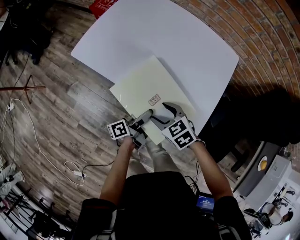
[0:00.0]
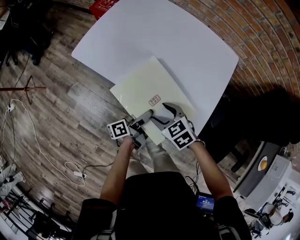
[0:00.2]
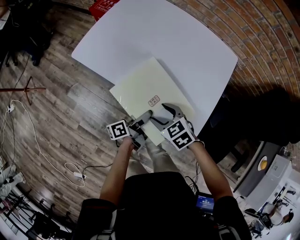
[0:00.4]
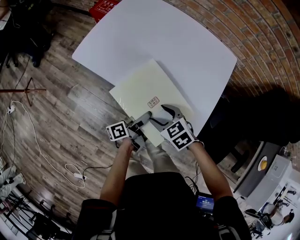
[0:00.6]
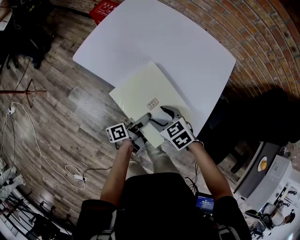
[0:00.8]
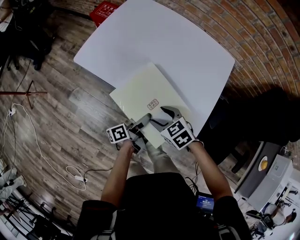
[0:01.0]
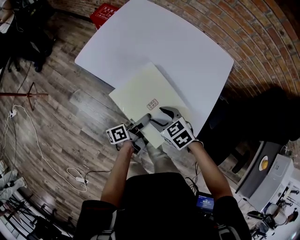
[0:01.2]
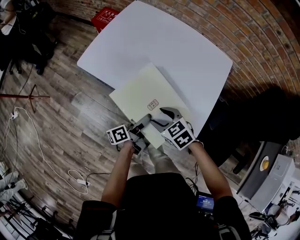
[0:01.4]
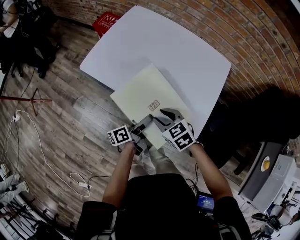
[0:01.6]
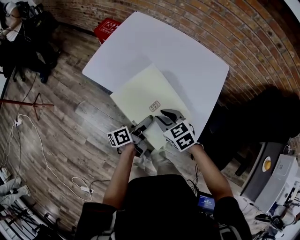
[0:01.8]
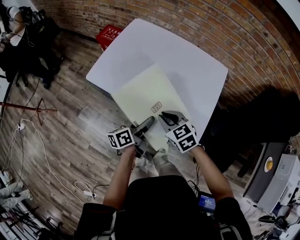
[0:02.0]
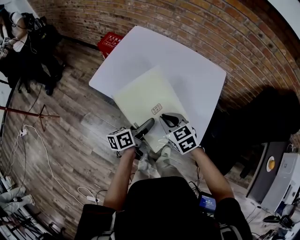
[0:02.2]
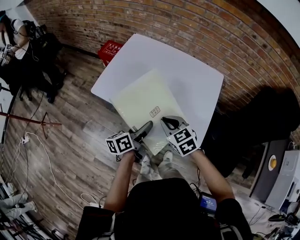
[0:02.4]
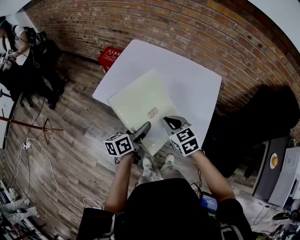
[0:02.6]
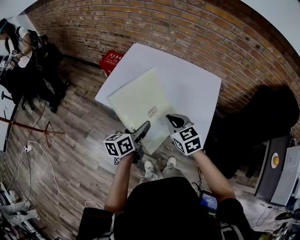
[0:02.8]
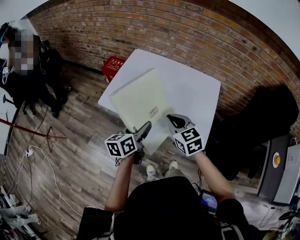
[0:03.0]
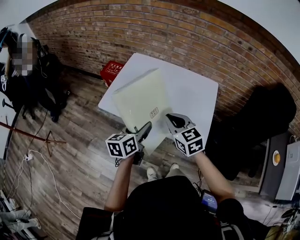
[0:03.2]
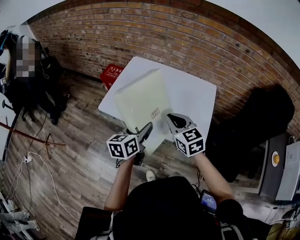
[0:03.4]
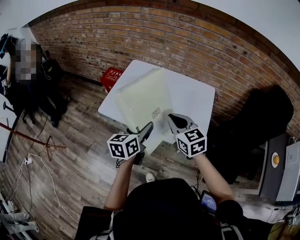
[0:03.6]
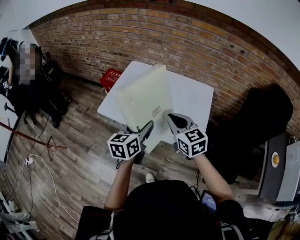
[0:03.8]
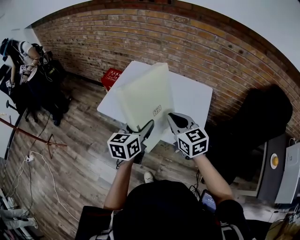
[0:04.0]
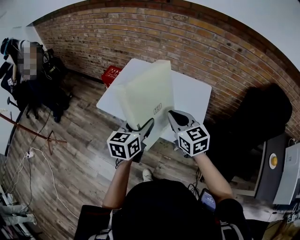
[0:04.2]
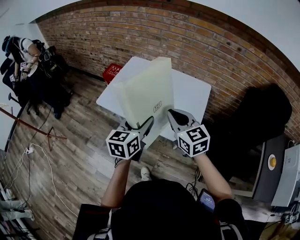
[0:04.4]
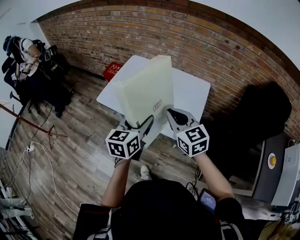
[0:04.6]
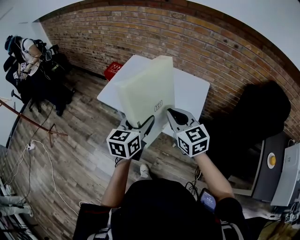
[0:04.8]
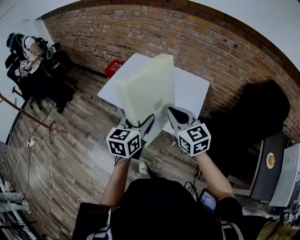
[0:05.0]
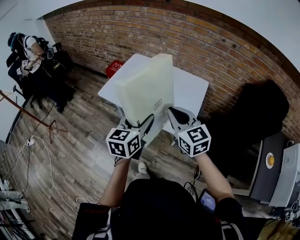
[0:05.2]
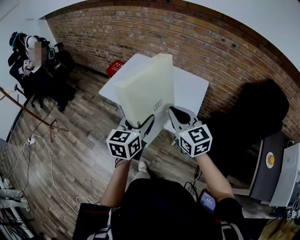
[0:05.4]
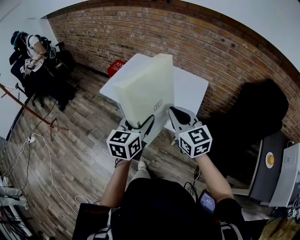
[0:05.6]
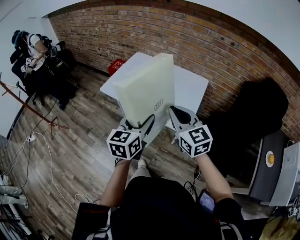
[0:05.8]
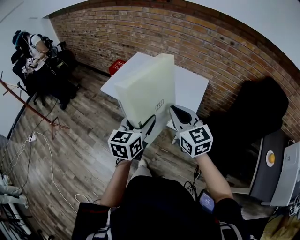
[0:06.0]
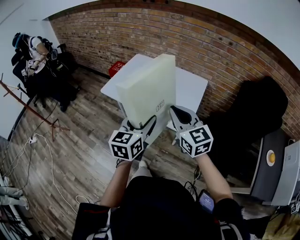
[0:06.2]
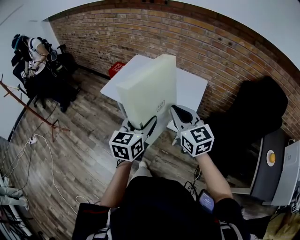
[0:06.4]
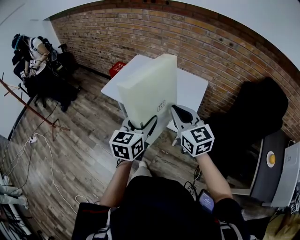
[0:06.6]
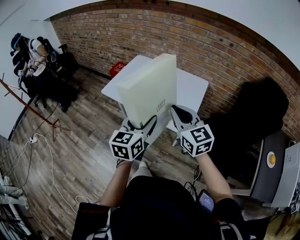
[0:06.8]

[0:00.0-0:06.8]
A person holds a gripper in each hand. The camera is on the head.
0:00.0 to 0:01.4: The grippers move only a little.
0:01.4 to 0:02.8: The right gripper travels upward by some 15 cm, rotates about 30 degrees, and closes its fingers, while the left gripper travels upward and to the left by roughly 20 cm, and turns by roughly 40 degrees.
0:02.8 to 0:04.0: Both grippers travel together upward, about 10 cm. The left gripper changes its angle by approximately 20 degrees.
0:04.0 to 0:05.4: The left gripper is displaced backward by approximately 15 cm. The right gripper moves backward and upward, some 15 cm.
0:05.4 to 0:06.8: The grippers move only a little.

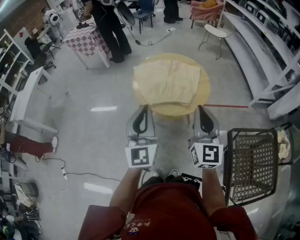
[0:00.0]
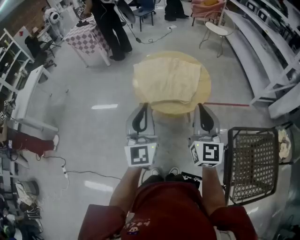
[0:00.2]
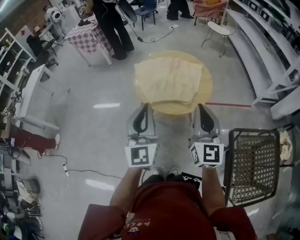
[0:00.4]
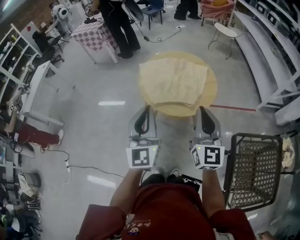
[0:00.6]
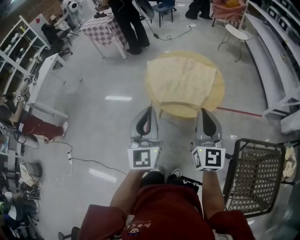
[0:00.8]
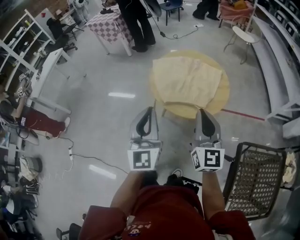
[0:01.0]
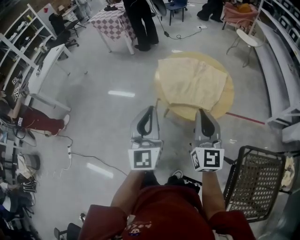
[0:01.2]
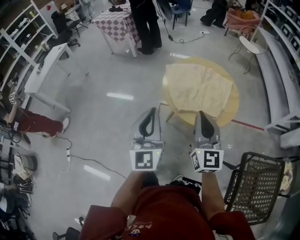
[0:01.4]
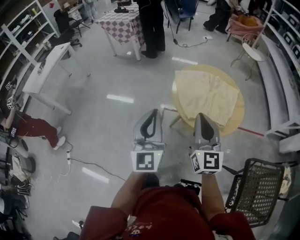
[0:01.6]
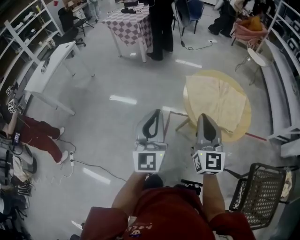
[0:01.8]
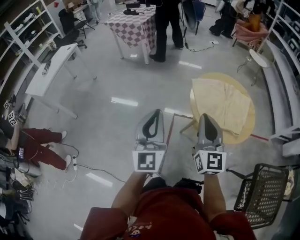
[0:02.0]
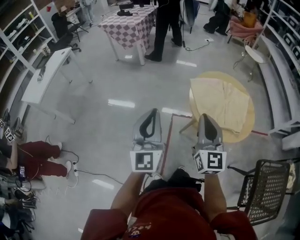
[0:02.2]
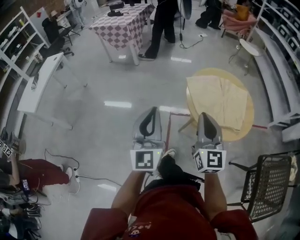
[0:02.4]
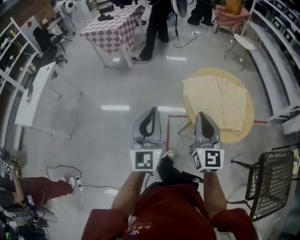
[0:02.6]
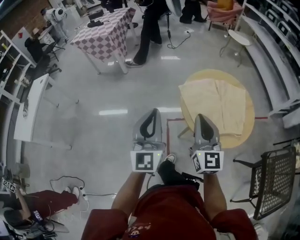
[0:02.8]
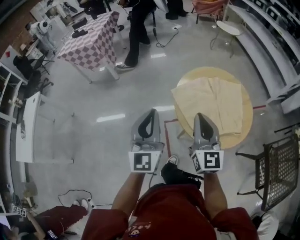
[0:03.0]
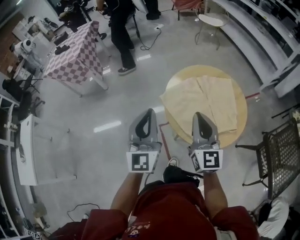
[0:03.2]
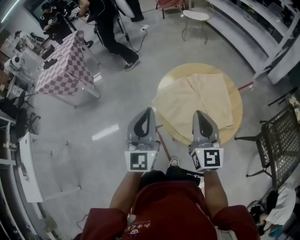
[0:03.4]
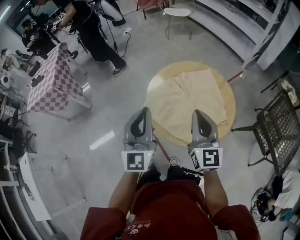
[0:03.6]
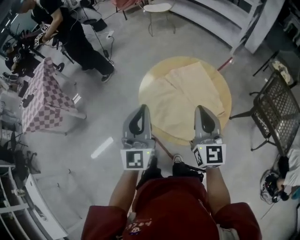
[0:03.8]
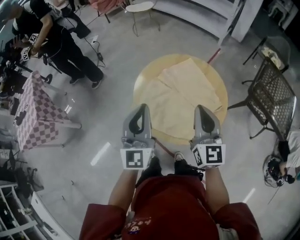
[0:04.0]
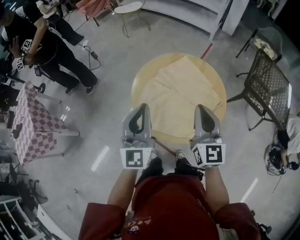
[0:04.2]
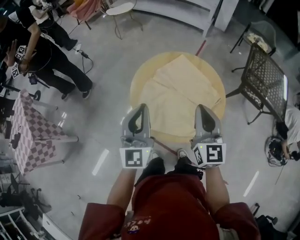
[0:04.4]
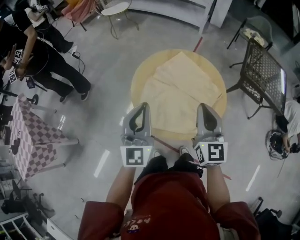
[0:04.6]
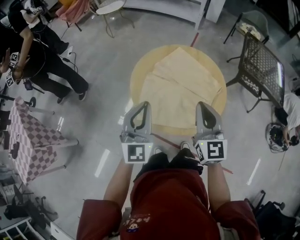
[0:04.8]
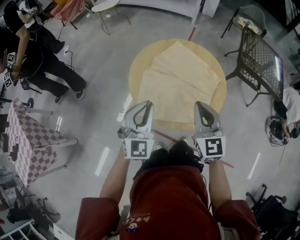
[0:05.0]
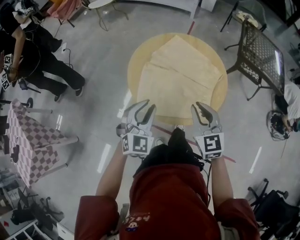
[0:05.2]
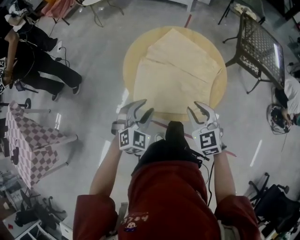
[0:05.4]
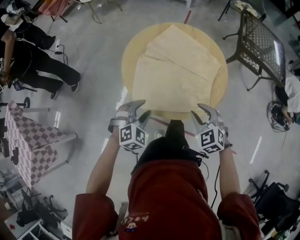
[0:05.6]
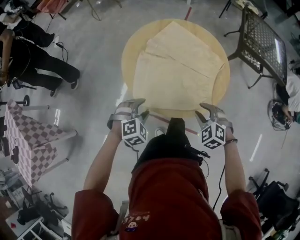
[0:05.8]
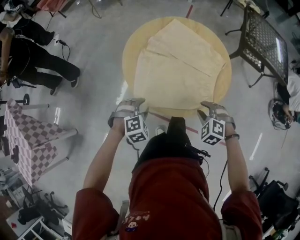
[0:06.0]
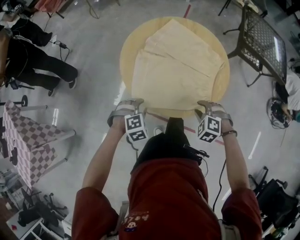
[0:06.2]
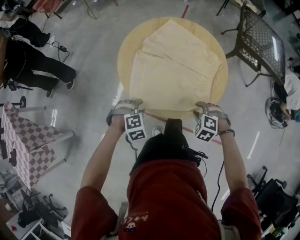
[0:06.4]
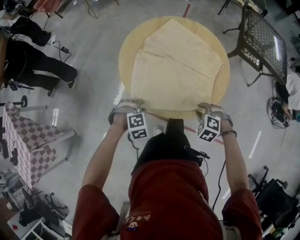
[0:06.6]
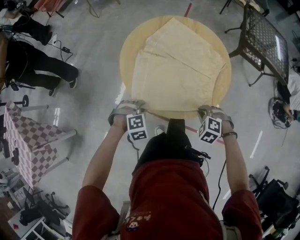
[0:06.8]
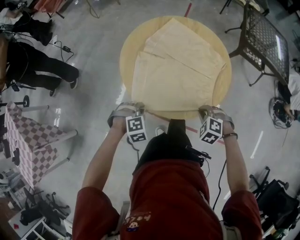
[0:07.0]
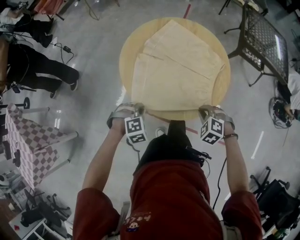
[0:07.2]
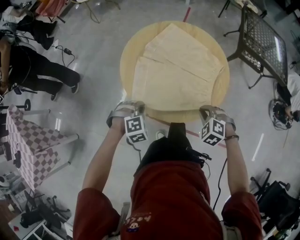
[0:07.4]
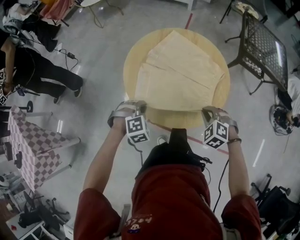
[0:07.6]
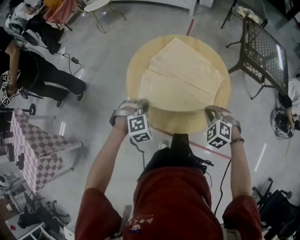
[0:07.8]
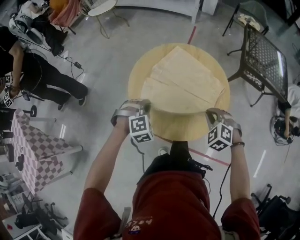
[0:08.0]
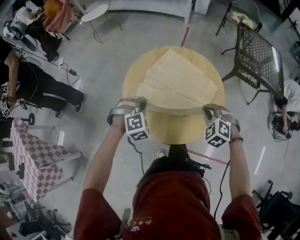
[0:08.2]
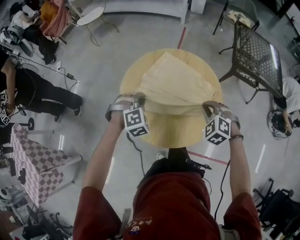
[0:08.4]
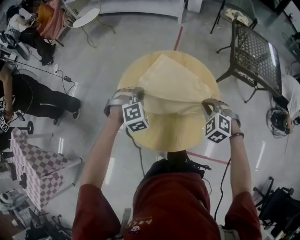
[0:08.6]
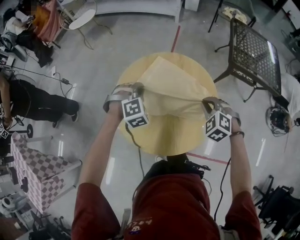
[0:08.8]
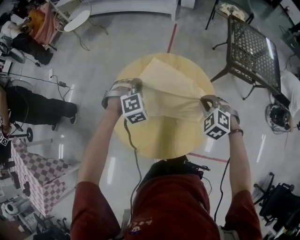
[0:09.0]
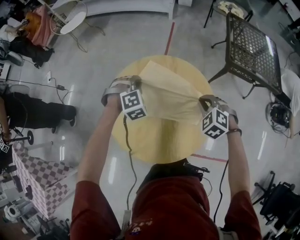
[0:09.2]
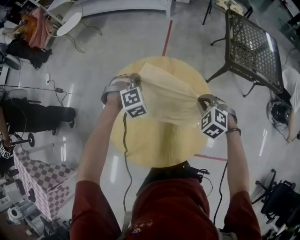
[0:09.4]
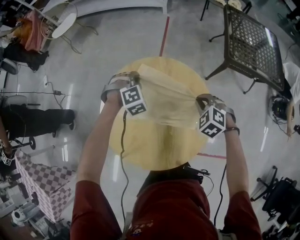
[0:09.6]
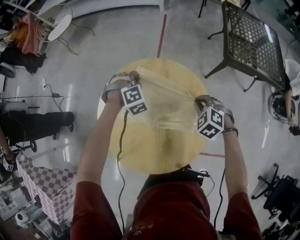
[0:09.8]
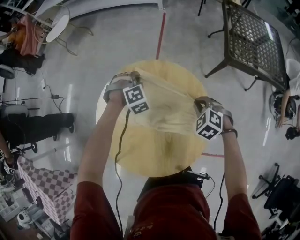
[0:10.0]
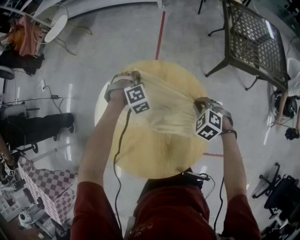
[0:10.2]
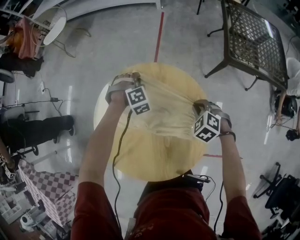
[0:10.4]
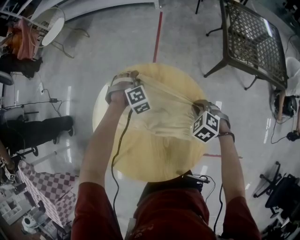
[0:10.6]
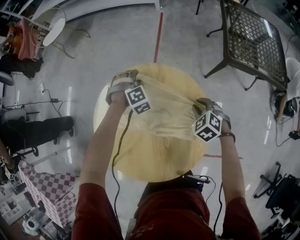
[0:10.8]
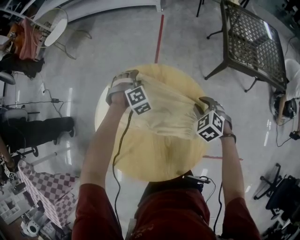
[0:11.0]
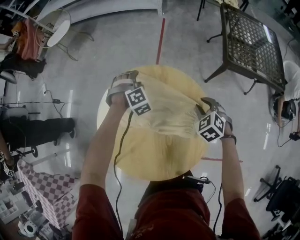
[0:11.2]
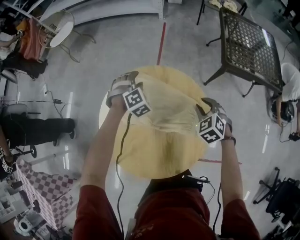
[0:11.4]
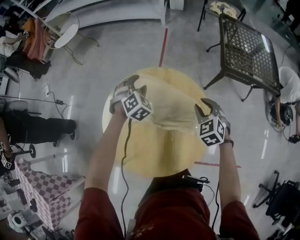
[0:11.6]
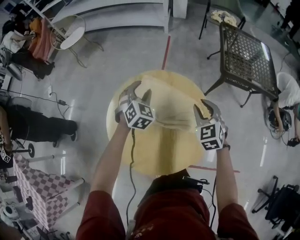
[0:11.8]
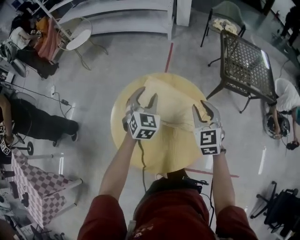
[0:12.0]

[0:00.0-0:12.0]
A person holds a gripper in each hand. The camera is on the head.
0:00.0 to 0:01.6: The left gripper shifts roughly 20 cm to the left, while the right gripper travels to the left and forward by roughly 20 cm.
0:01.6 to 0:03.0: Both grippers move forward, about 25 cm. The left gripper swivels some 20 degrees.
0:03.0 to 0:04.4: The right gripper moves roughly 15 cm, and turns by some 50 degrees. The left gripper ends up about 25 cm from where it was, and rotates approximately 50 degrees.
0:04.4 to 0:06.0: The two grippers go roughly 30 cm downward. The right gripper points its fingers roughly 60 degrees further downward, and opens up; the left gripper tilts its fingers about 70 degrees downward, and opens up.
0:06.0 to 0:07.6: The right gripper moves some 5 cm, and closes its fingers; the left gripper heads forward, covering approximately 5 cm, and closes up.
0:07.6 to 0:09.0: The left gripper shifts roughly 25 cm forward; the right gripper is displaced forward and to the right by some 20 cm.
0:09.0 to 0:10.4: The left gripper moves forward, downward and to the right, roughly 20 cm, while the right gripper travels downward, forward and to the right by about 15 cm.
0:10.4 to 0:12.0: The right gripper travels upward by some 20 cm, tips its fingers upward by some 40 degrees, and opens. The left gripper goes roughly 25 cm upward and backward, rotates around the line of its fingers by some 50 degrees, counterclockwise from behind, and opens up.

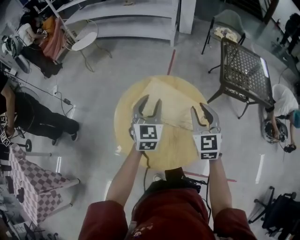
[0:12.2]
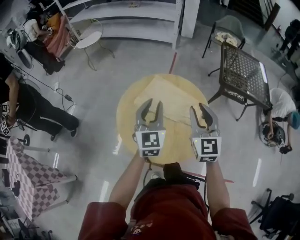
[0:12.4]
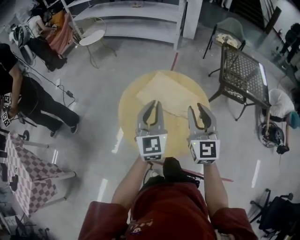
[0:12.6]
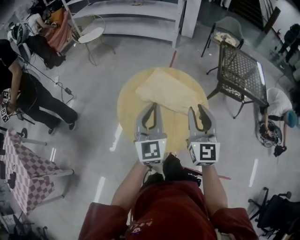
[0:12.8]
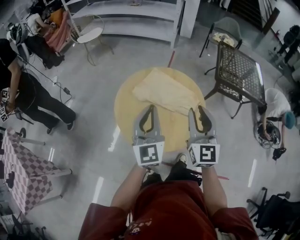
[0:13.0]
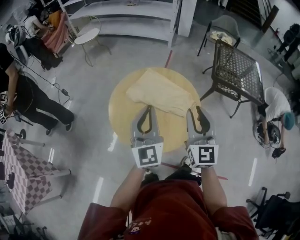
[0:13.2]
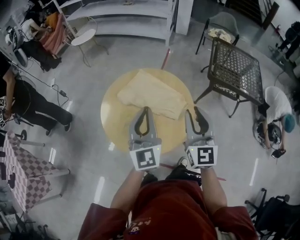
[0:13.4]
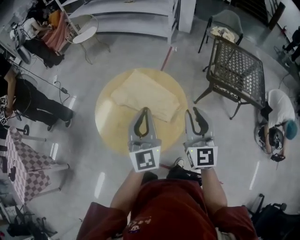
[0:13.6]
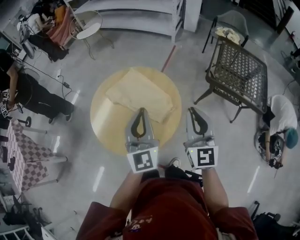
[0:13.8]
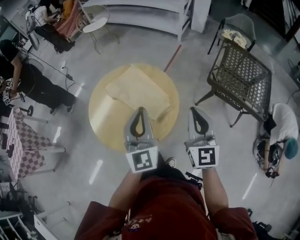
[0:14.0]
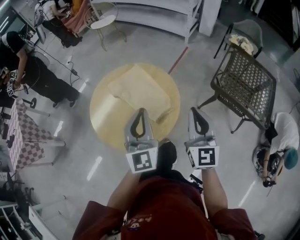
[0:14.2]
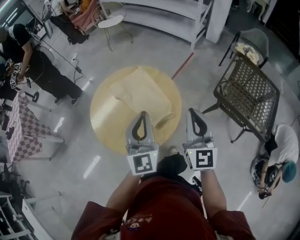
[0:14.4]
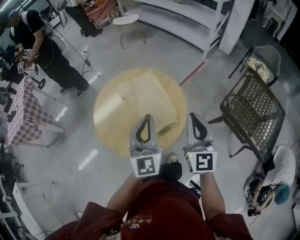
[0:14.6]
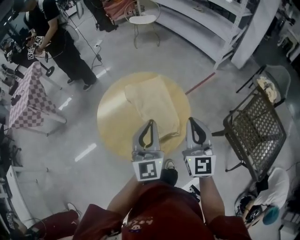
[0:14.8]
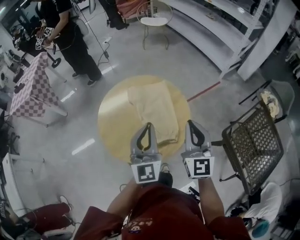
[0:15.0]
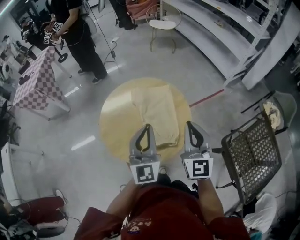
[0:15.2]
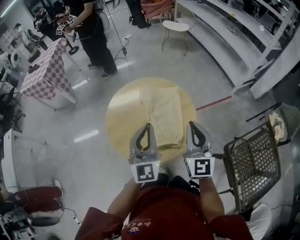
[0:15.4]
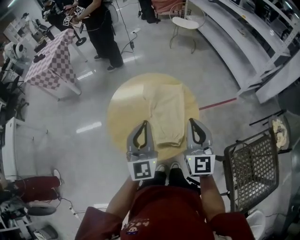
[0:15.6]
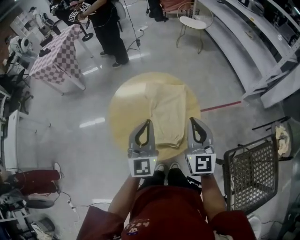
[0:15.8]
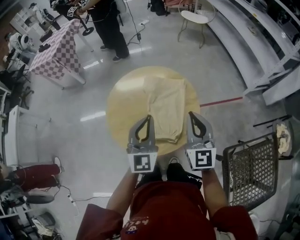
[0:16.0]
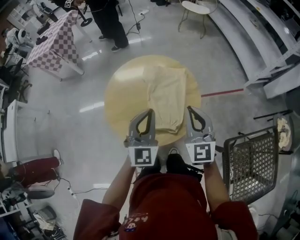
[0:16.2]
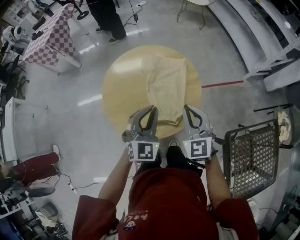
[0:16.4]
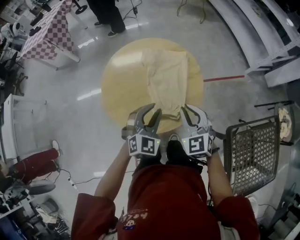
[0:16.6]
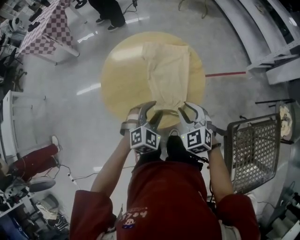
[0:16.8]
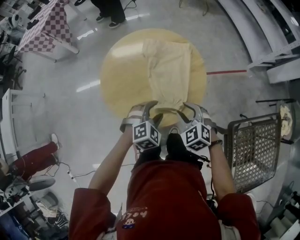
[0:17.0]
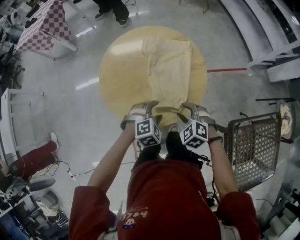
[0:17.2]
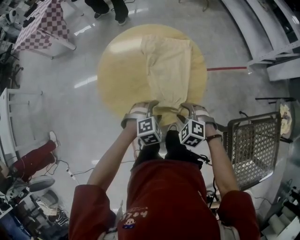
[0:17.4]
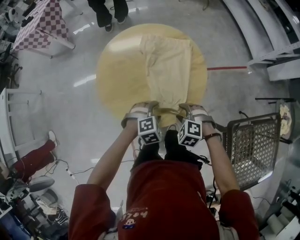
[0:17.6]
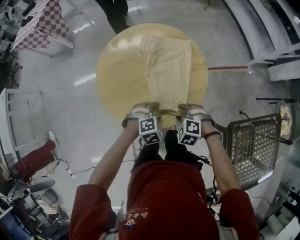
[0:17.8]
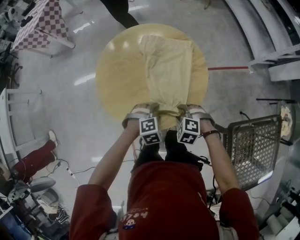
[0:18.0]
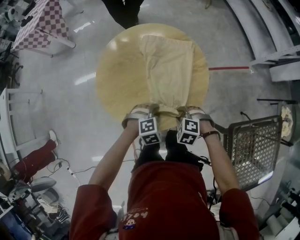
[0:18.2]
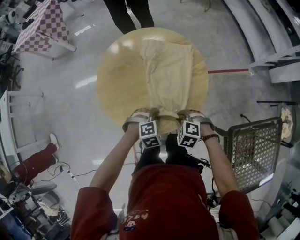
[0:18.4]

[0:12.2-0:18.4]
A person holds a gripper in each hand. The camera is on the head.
0:12.2 to 0:13.8: The right gripper shifts about 20 cm to the right and backward, turns by about 20 degrees, and closes up. Meanwhile the left gripper goes some 25 cm to the right, backward and upward, turns by roughly 30 degrees, and closes up.
0:13.8 to 0:15.4: The left gripper turns by roughly 40 degrees; the right gripper moves approximately 15 cm, and rotates about 40 degrees.
0:15.4 to 0:16.8: Both grippers travel together downward, roughly 20 cm. The left gripper points its fingers about 50 degrees further downward, and opens its fingers; the right gripper angles its fingers downward, by about 40 degrees, and opens.
0:16.8 to 0:18.4: Both grippers move downward, about 15 cm. The left gripper changes its angle by about 30 degrees, while the right gripper tips its fingers downward by some 30 degrees, and opens, then closes again.
